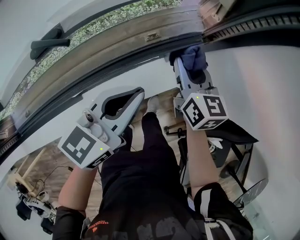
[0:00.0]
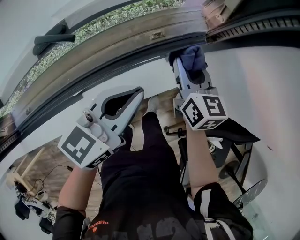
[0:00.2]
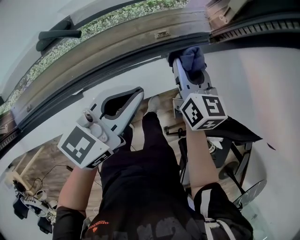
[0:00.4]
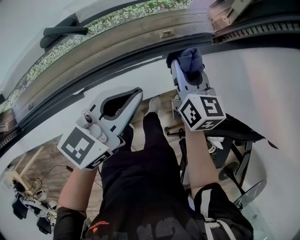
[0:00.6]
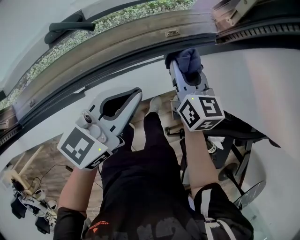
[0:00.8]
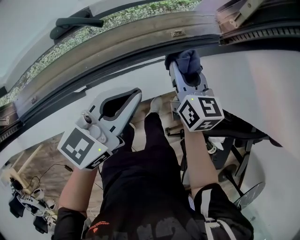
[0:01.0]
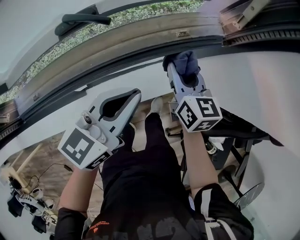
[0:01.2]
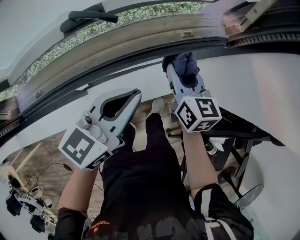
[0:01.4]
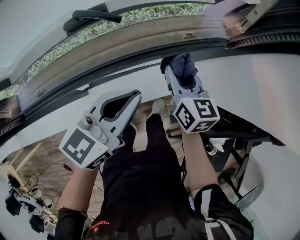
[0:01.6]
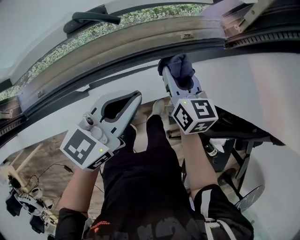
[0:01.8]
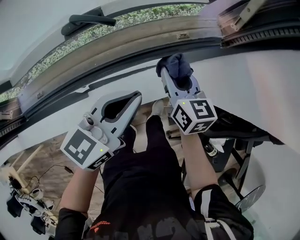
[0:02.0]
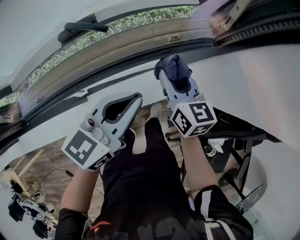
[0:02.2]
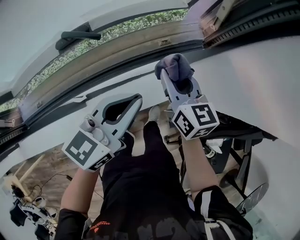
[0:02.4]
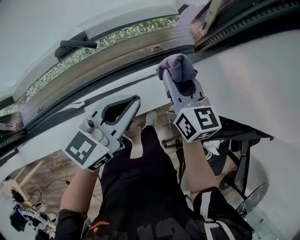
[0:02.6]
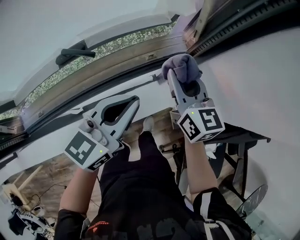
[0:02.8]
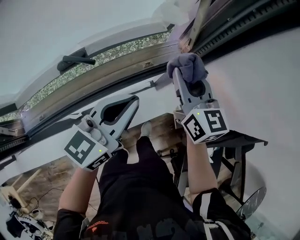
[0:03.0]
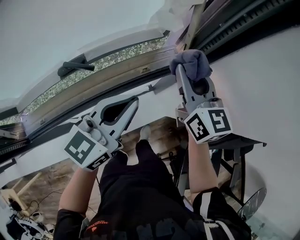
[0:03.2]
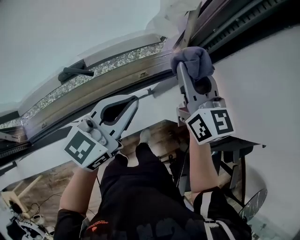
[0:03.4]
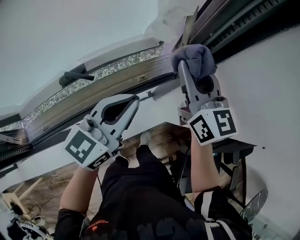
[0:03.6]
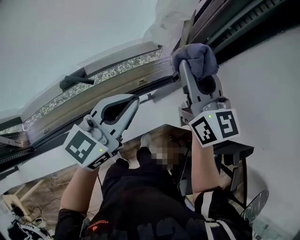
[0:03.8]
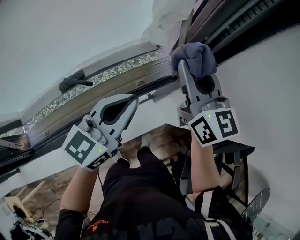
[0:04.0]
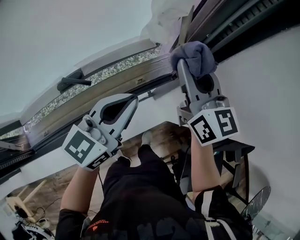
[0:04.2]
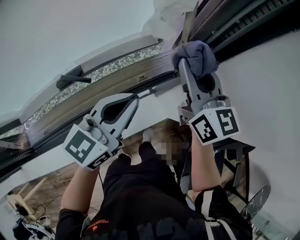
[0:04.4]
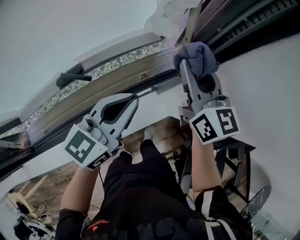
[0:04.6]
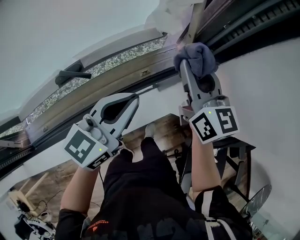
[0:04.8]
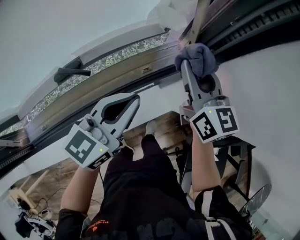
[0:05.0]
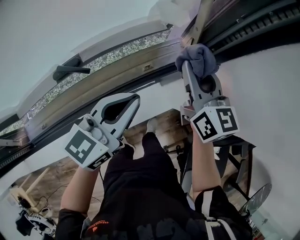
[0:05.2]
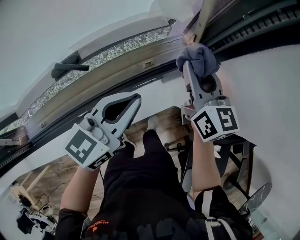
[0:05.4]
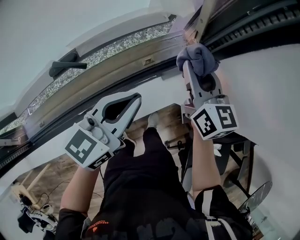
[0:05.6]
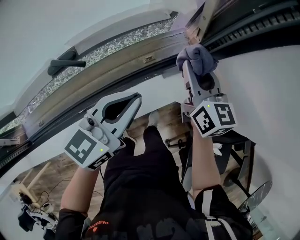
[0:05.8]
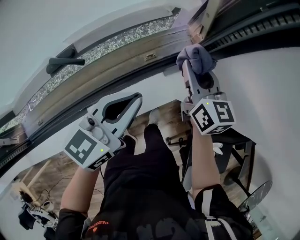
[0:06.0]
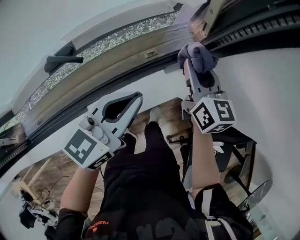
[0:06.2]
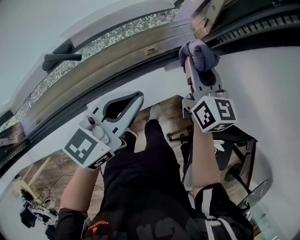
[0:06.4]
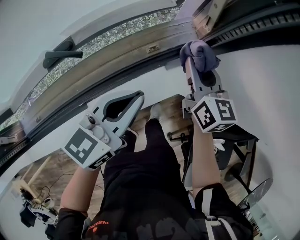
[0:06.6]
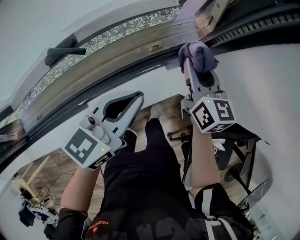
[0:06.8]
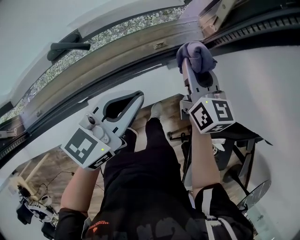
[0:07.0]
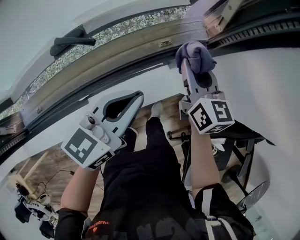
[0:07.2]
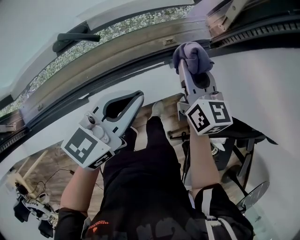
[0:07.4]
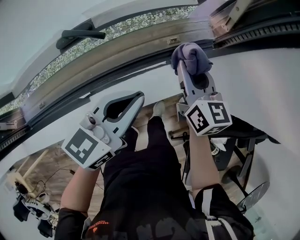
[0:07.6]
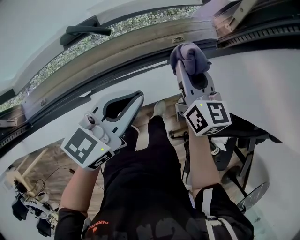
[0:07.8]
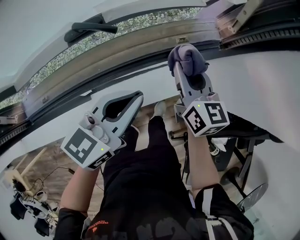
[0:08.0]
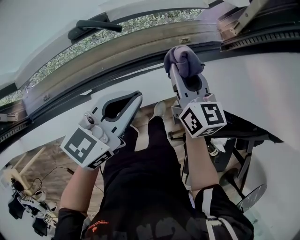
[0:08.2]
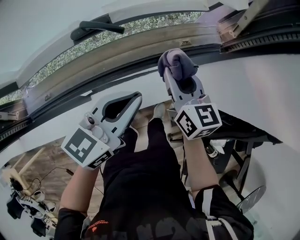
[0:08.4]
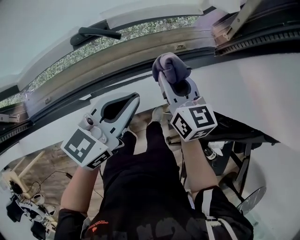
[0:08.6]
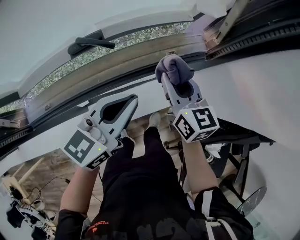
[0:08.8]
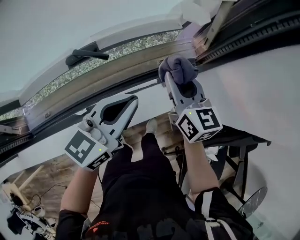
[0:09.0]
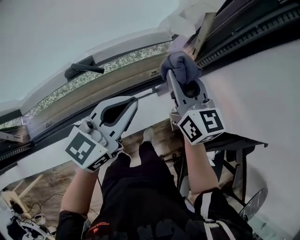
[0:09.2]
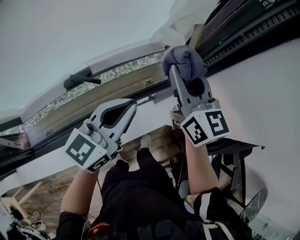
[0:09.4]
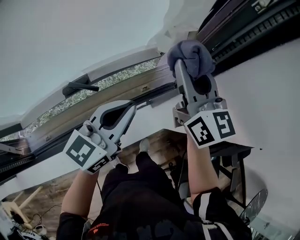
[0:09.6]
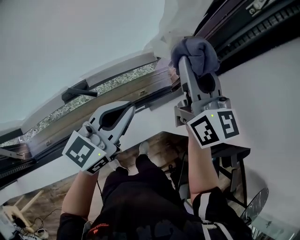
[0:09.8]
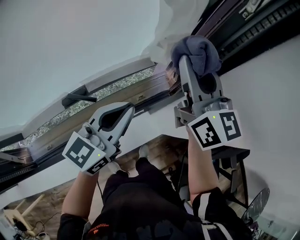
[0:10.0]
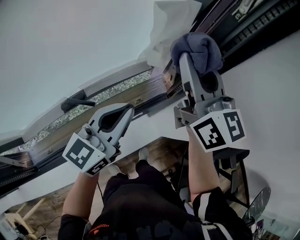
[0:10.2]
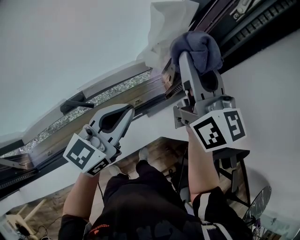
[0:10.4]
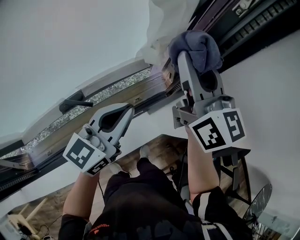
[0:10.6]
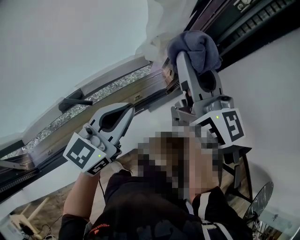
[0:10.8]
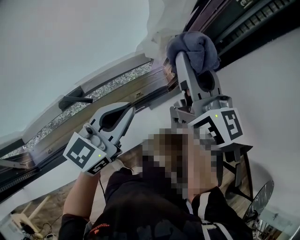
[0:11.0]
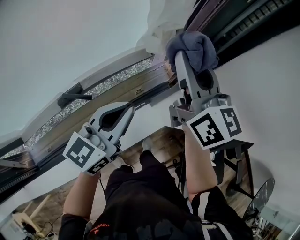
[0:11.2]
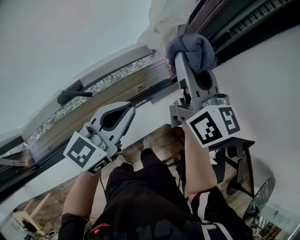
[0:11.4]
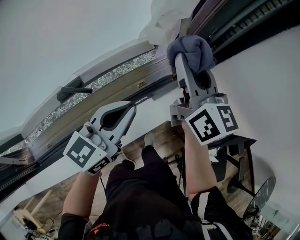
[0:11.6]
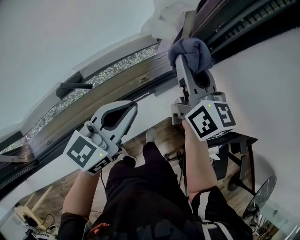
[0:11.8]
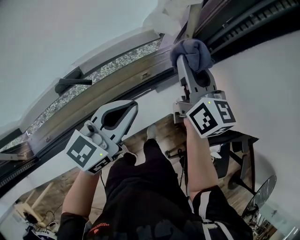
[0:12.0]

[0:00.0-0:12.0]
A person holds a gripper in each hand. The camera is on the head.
0:00.0 to 0:01.6: Both grippers move to the left and backward, approximately 10 cm.
0:01.6 to 0:03.0: The right gripper is displaced upward and to the right by approximately 20 cm; the left gripper goes about 10 cm upward and to the right.
0:03.0 to 0:04.4: The right gripper travels upward by about 10 cm. Meanwhile the left gripper changes place by some 5 cm.
0:04.4 to 0:06.0: The left gripper moves downward, some 10 cm; the right gripper is displaced downward by roughly 15 cm.
0:06.0 to 0:07.6: The left gripper shifts roughly 5 cm backward. Meanwhile the right gripper travels to the left and backward by about 10 cm.
0:07.6 to 0:09.0: The two grippers go approximately 5 cm upward.
0:09.0 to 0:10.4: The left gripper moves upward and forward, about 10 cm; the right gripper goes about 25 cm upward, and changes its angle by some 20 degrees.
0:10.4 to 0:12.0: The left gripper goes roughly 10 cm downward, while the right gripper travels downward by some 20 cm.

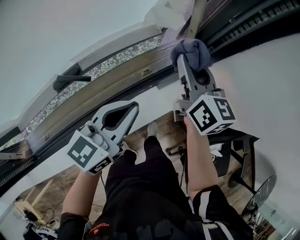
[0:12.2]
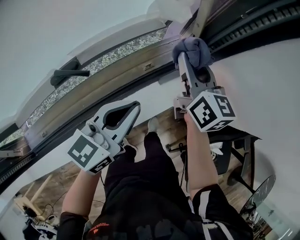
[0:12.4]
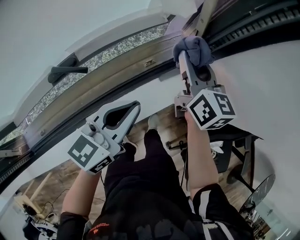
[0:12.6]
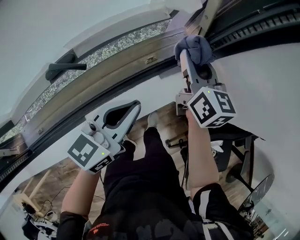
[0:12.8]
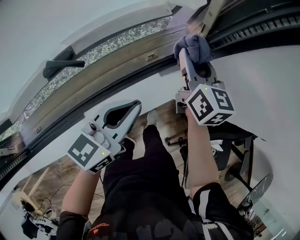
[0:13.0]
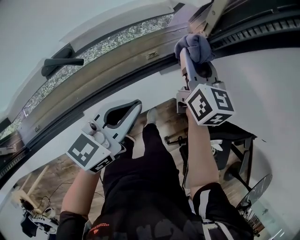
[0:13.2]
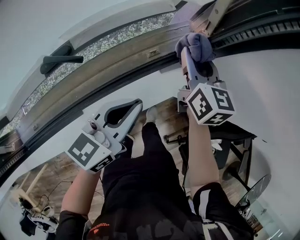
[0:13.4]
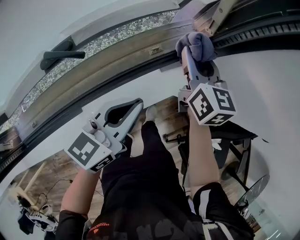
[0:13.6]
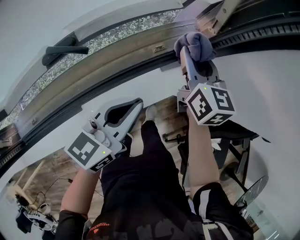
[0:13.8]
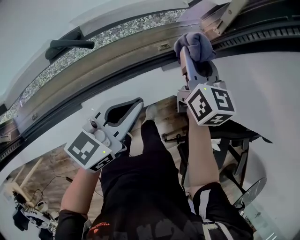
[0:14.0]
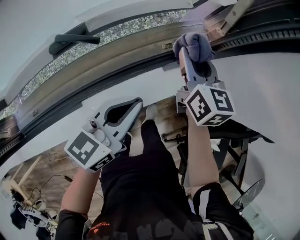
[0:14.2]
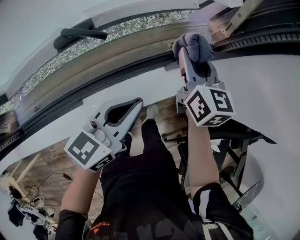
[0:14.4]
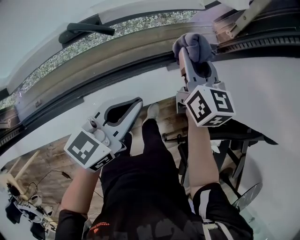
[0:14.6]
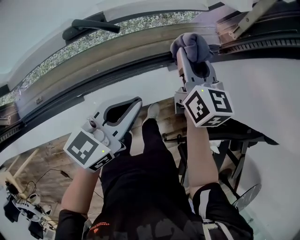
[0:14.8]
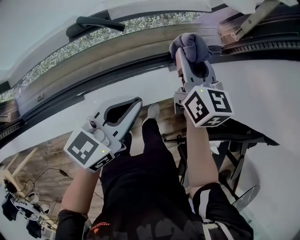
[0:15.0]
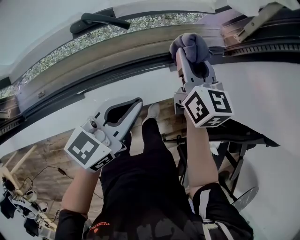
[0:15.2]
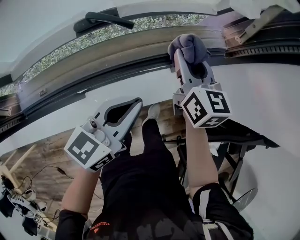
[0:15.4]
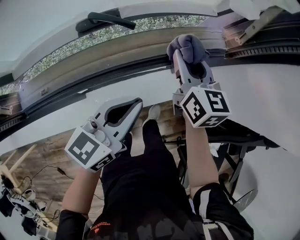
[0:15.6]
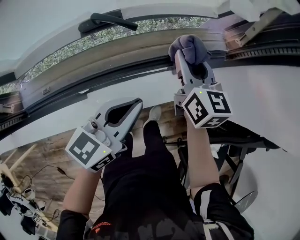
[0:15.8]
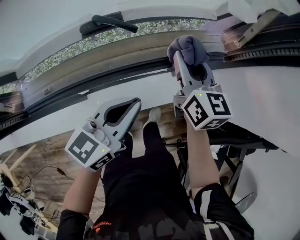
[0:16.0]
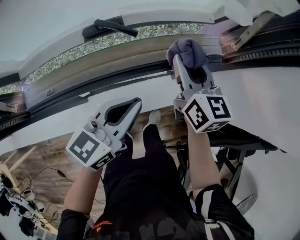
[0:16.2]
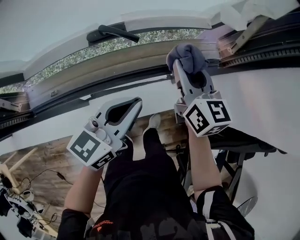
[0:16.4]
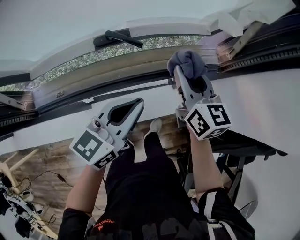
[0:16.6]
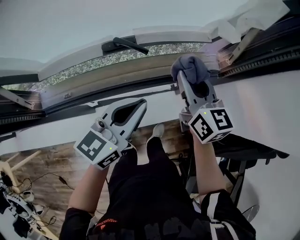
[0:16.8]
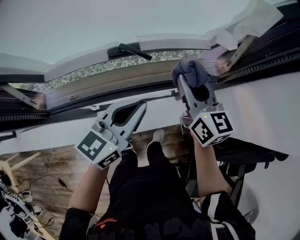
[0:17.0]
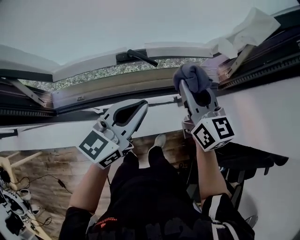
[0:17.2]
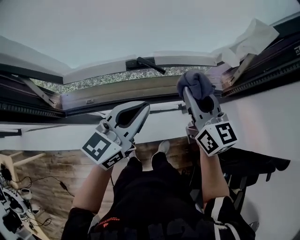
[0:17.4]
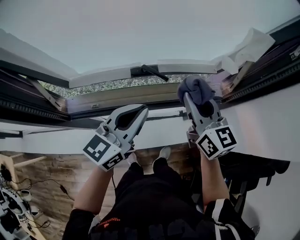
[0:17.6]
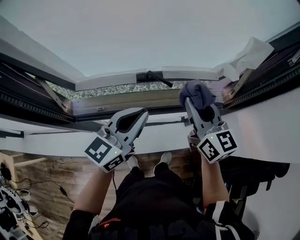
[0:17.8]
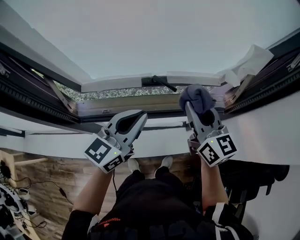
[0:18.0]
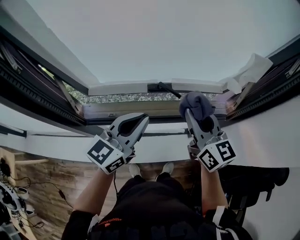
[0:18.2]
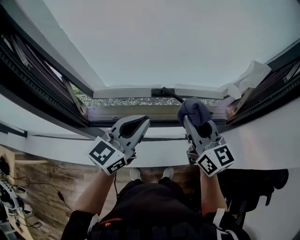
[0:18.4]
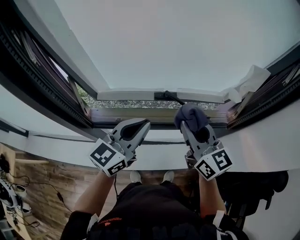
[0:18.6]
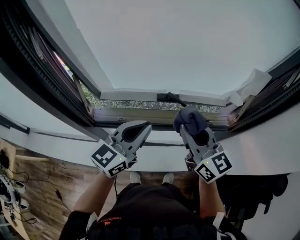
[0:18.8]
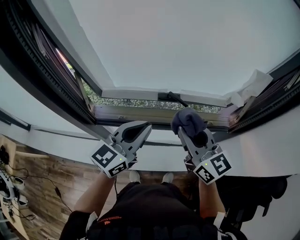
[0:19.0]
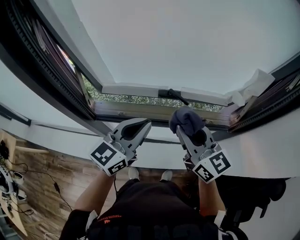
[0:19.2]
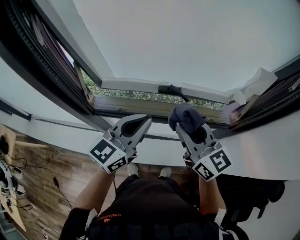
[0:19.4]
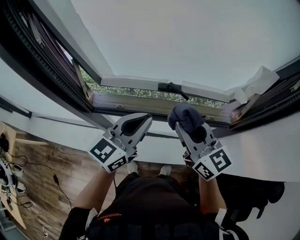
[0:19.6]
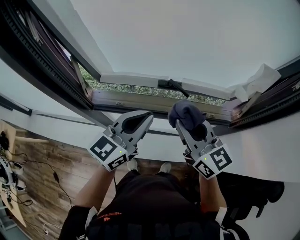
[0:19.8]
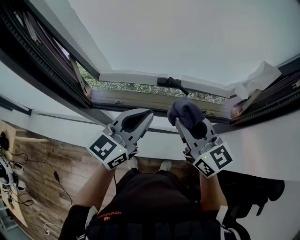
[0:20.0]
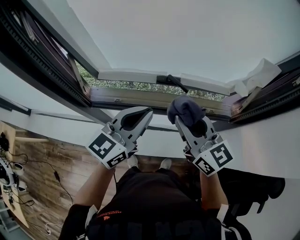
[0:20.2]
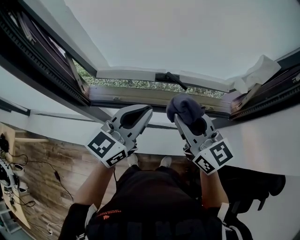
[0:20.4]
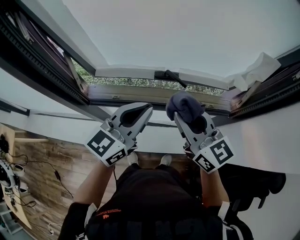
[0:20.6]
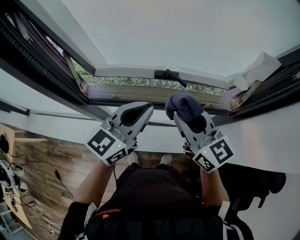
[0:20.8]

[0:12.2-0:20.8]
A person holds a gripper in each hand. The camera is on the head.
0:12.2 to 0:13.6: The grippers both shift downward by about 10 cm.
0:13.6 to 0:15.0: The left gripper heads backward and to the left, covering some 10 cm. Meanwhile the right gripper travels to the left and backward by approximately 10 cm.
0:15.0 to 0:16.6: Both grippers travel together upward, about 5 cm.
0:16.6 to 0:18.0: The two grippers go about 15 cm upward and to the left.
0:18.0 to 0:19.4: The left gripper ends up approximately 5 cm from where it was. The right gripper goes roughly 10 cm to the left and backward.
0:19.4 to 0:20.8: The grippers stay close to where they were, moving slightly.

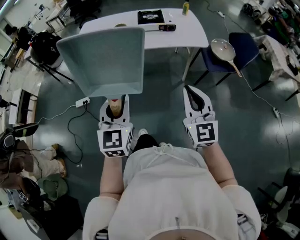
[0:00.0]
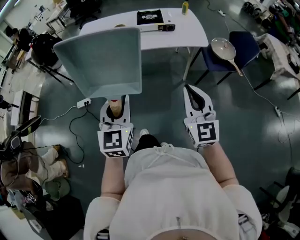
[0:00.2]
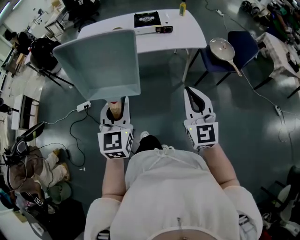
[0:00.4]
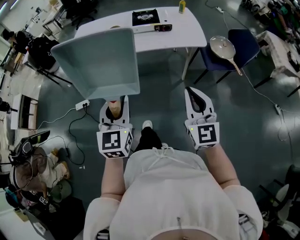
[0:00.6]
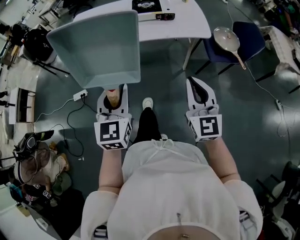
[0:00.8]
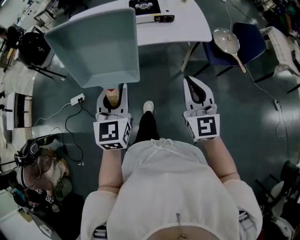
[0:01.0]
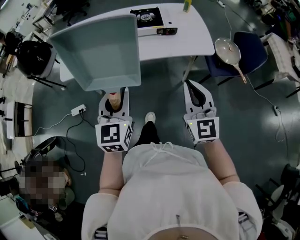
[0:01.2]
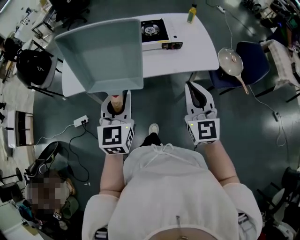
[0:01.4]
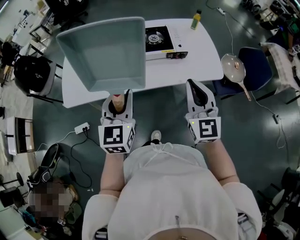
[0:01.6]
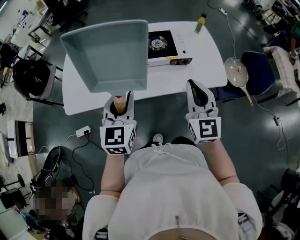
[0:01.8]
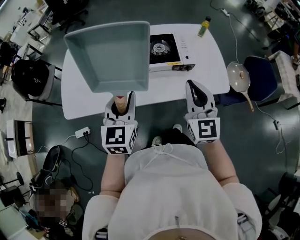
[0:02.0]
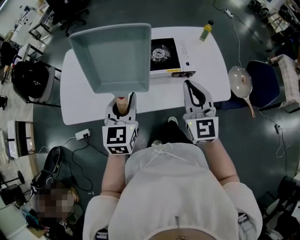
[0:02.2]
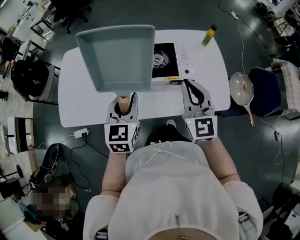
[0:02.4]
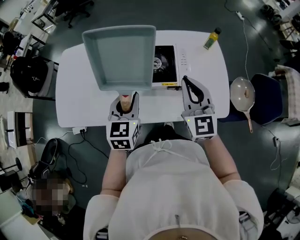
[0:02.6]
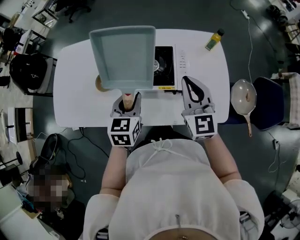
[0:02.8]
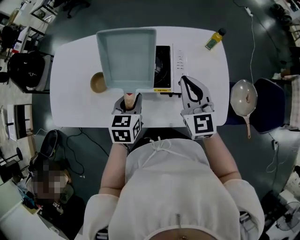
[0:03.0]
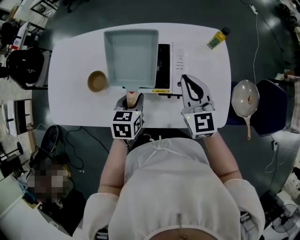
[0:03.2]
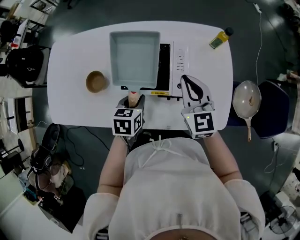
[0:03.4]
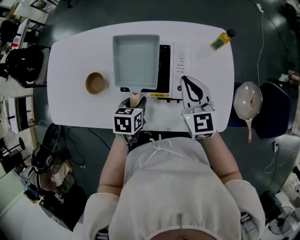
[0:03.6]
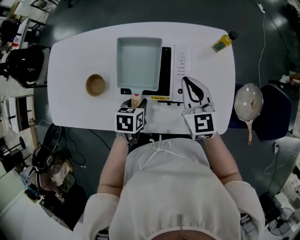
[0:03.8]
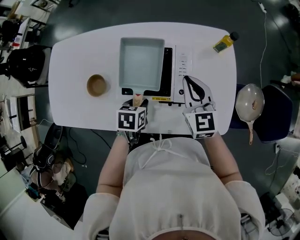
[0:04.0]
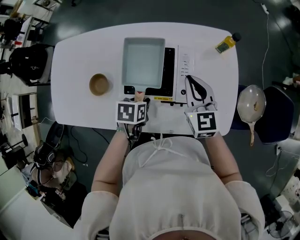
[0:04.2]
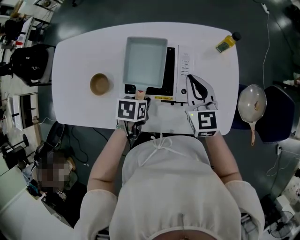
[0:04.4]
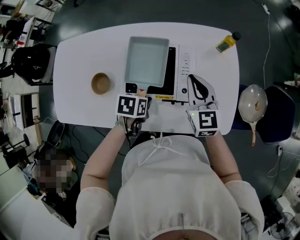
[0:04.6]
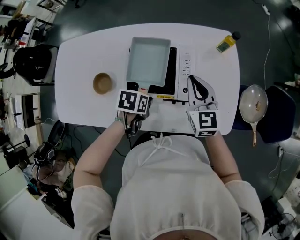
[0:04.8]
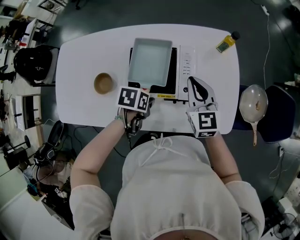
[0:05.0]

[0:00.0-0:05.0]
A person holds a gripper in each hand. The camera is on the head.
0:00.0 to 0:01.6: Both grippers move forward, some 40 cm.
0:01.6 to 0:03.4: The left gripper travels forward, downward and to the right by approximately 40 cm, and angles its fingers downward, by some 40 degrees. Meanwhile the right gripper is displaced forward by roughly 35 cm, and swivels about 20 degrees.
0:03.4 to 0:05.0: The left gripper swivels about 30 degrees.
